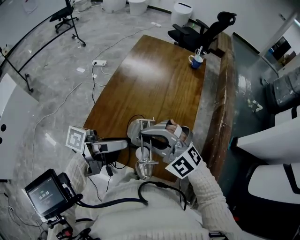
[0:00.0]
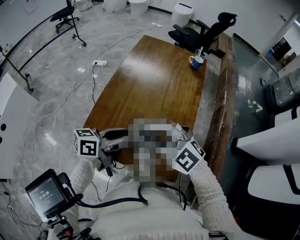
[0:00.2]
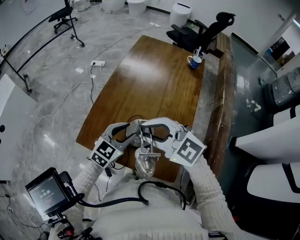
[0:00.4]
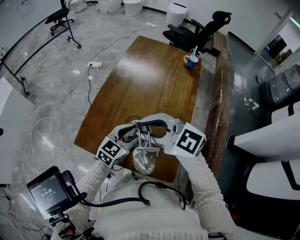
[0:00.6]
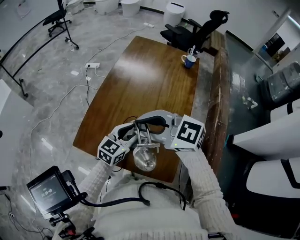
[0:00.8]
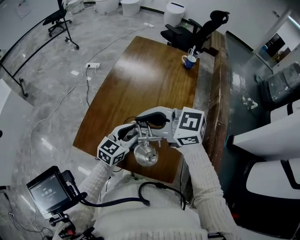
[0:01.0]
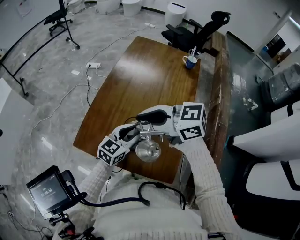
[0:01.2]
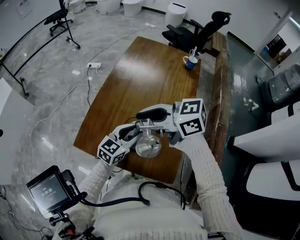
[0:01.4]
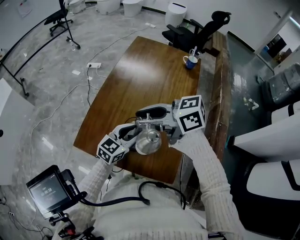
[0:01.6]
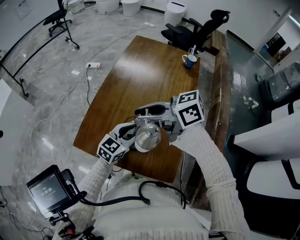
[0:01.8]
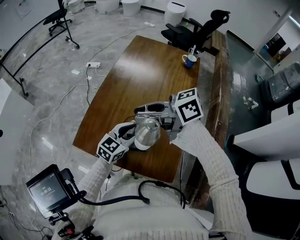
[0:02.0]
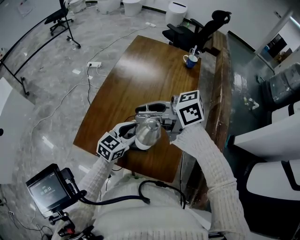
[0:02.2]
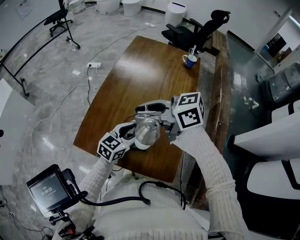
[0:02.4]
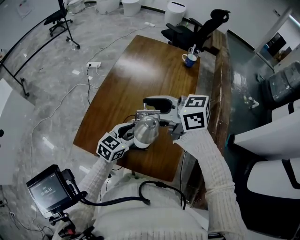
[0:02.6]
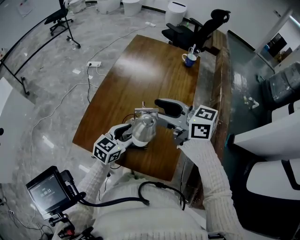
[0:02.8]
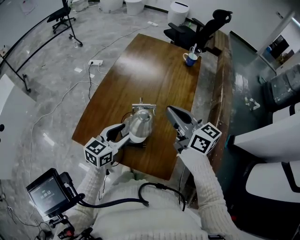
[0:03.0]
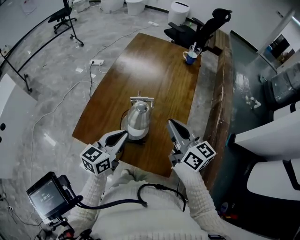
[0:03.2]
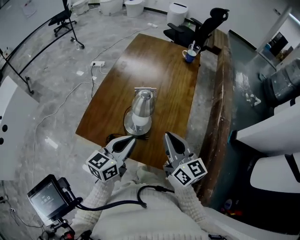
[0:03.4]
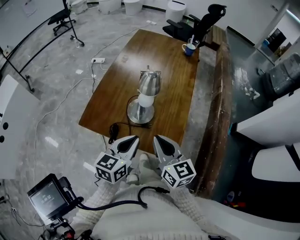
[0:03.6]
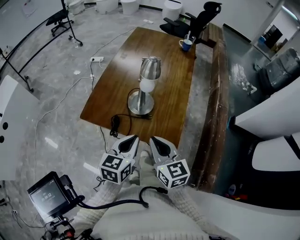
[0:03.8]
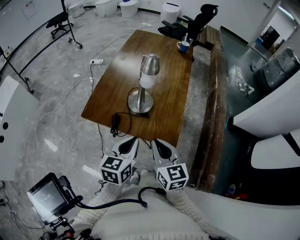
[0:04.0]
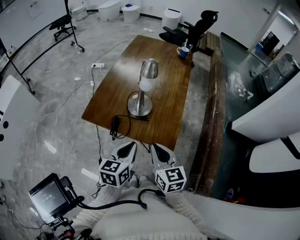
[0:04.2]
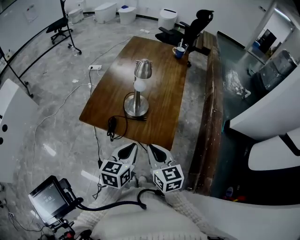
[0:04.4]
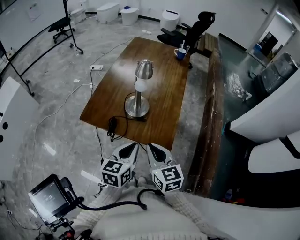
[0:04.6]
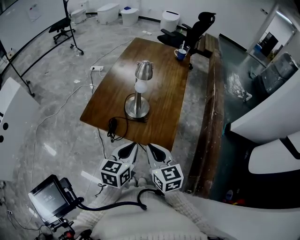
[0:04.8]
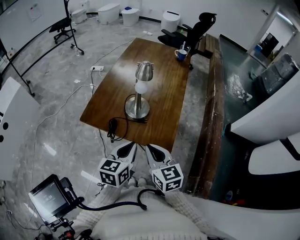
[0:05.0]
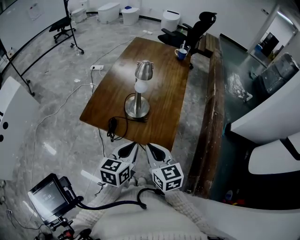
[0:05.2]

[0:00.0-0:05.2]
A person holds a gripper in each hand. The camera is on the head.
0:00.0 to 0:01.8: The right gripper ends up approximately 5 cm from where it was, and rolls clockwise, seen from behind, by about 80 degrees, while the left gripper goes some 10 cm downward, and twists roughly 60 degrees clockwise, seen from behind.
0:01.8 to 0:03.4: The right gripper ends up roughly 15 cm from where it was, swivels approximately 60 degrees, and closes its fingers, while the left gripper changes place by about 10 cm, changes its angle by roughly 20 degrees, and closes its fingers.
0:03.4 to 0:05.2: The two grippers go about 15 cm backward.

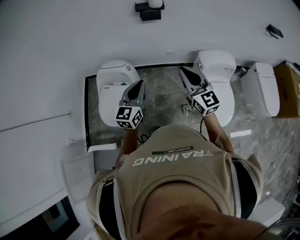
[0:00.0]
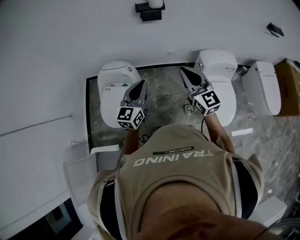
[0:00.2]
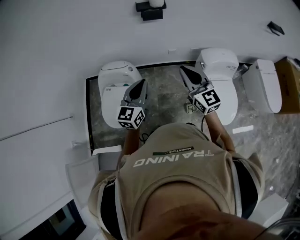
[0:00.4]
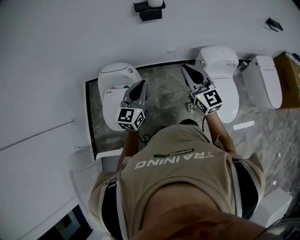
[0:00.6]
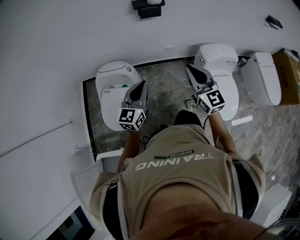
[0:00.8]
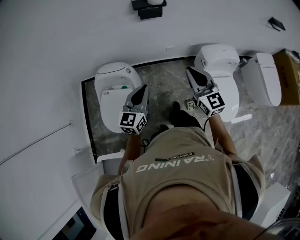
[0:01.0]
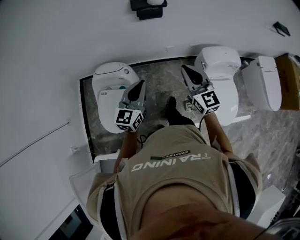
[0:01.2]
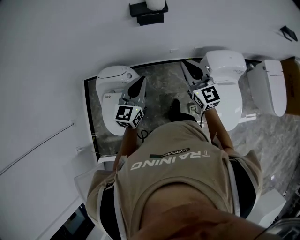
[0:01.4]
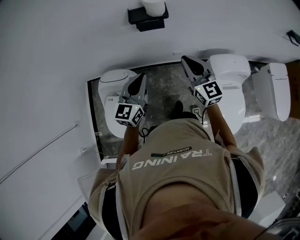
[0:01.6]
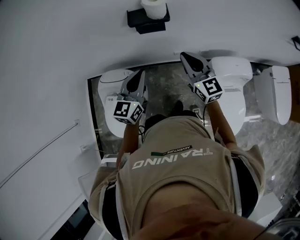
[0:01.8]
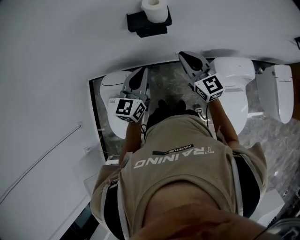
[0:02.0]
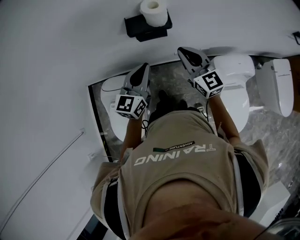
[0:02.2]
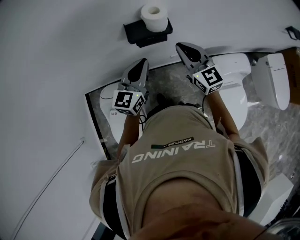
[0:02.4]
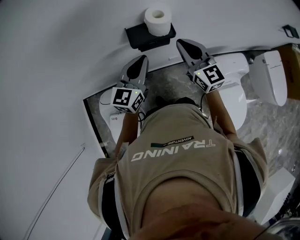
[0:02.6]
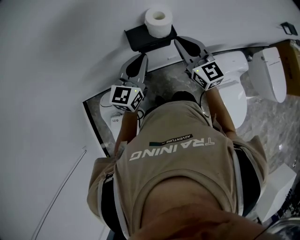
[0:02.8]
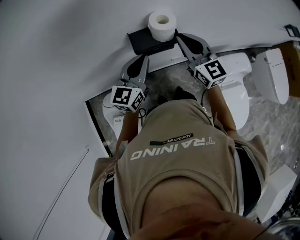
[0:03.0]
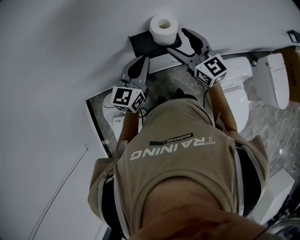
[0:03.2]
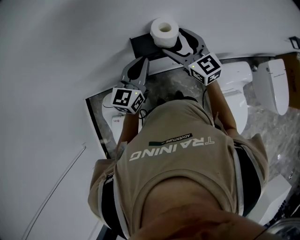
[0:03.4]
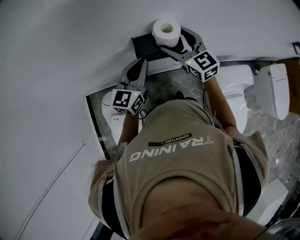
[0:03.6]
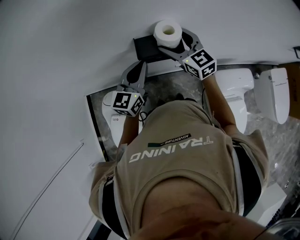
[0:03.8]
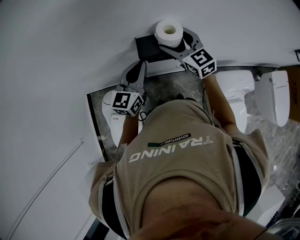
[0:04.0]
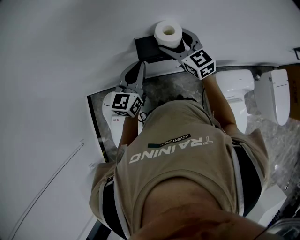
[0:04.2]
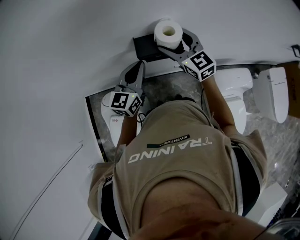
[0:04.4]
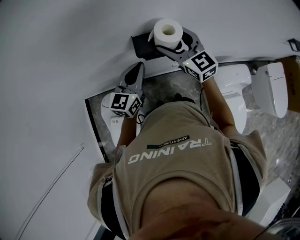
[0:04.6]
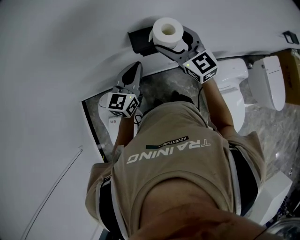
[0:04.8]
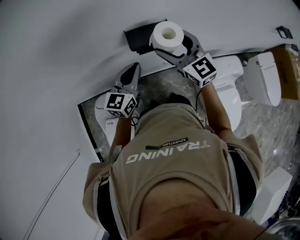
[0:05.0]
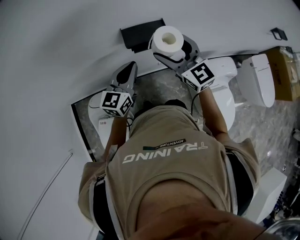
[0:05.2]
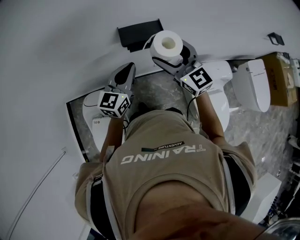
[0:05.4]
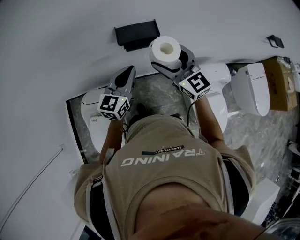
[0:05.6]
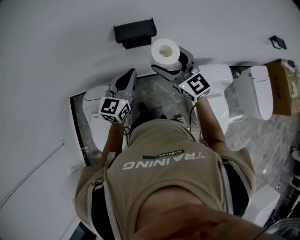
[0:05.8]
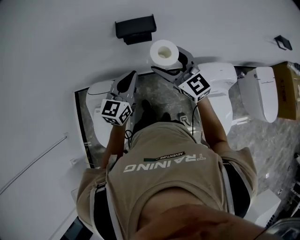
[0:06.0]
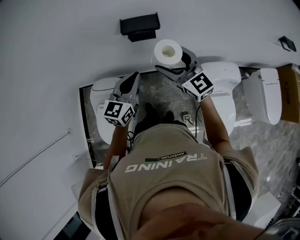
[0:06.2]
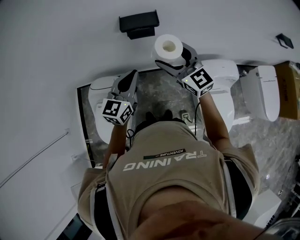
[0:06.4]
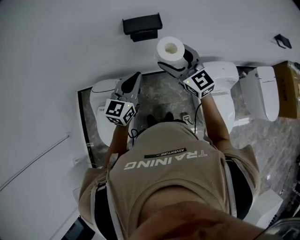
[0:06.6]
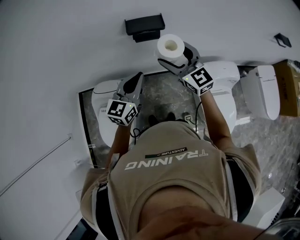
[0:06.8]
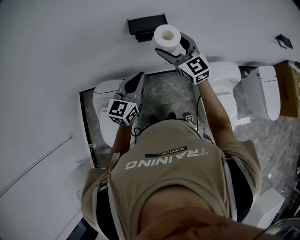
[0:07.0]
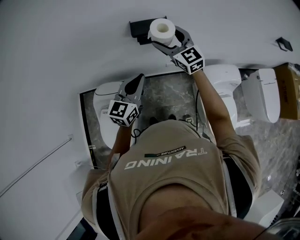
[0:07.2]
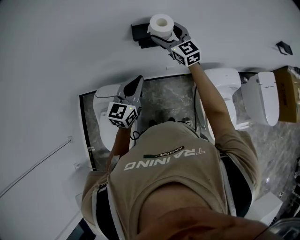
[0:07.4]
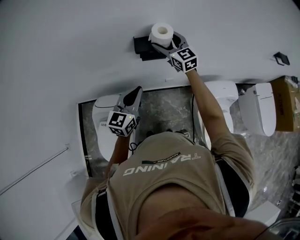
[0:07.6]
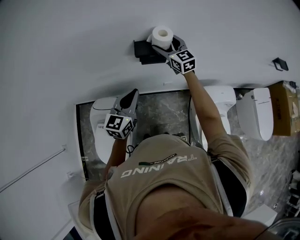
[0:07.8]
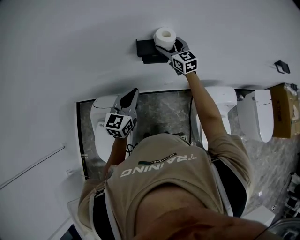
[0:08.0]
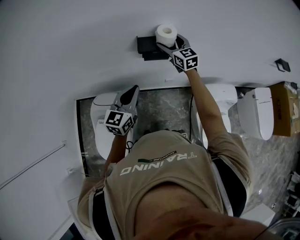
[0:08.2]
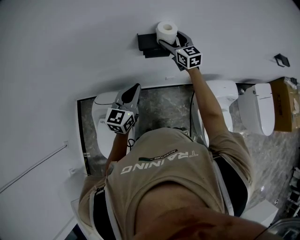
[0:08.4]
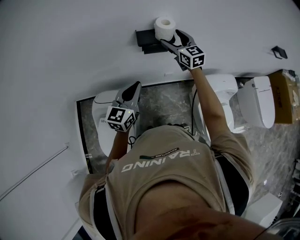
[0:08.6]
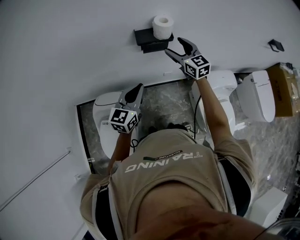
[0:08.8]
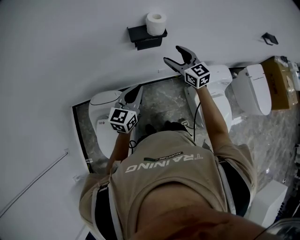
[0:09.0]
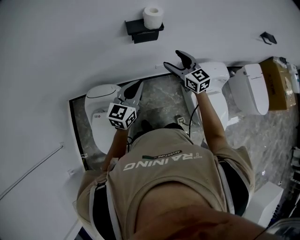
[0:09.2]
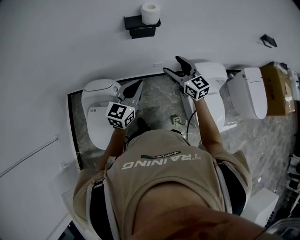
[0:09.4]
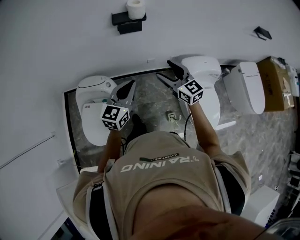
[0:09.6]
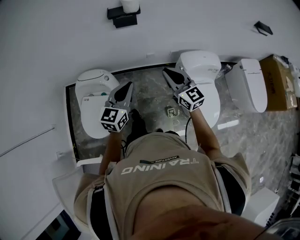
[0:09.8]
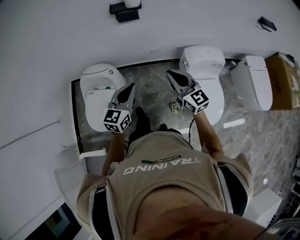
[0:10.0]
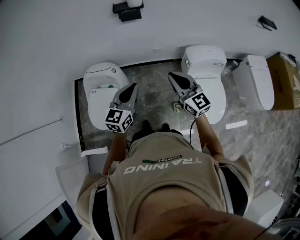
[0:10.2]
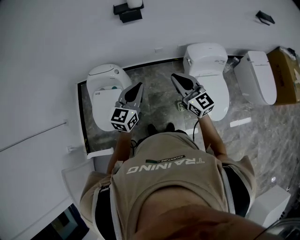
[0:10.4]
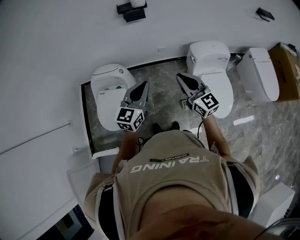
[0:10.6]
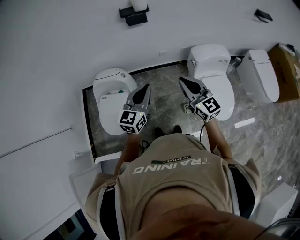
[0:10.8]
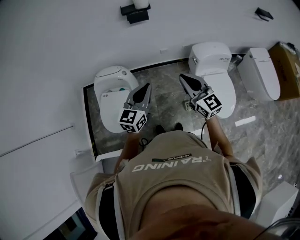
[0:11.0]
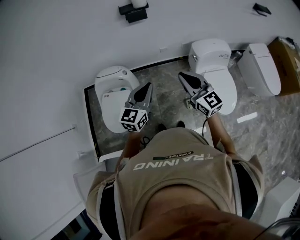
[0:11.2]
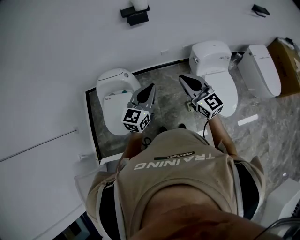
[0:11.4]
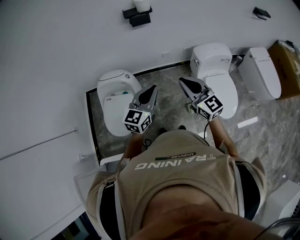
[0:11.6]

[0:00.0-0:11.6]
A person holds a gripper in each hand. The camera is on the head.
0:00.0 to 0:01.4: The grippers both shift forward by some 20 cm.
0:01.4 to 0:02.8: The grippers both shift forward by some 25 cm.
0:02.8 to 0:04.4: The right gripper shifts some 5 cm forward, and opens.
0:04.4 to 0:05.8: The two grippers go some 15 cm backward.
0:05.8 to 0:07.2: The right gripper travels forward by roughly 10 cm. Meanwhile the left gripper ends up some 5 cm from where it was.
0:07.2 to 0:08.8: The right gripper goes forward and returns, about 10 cm each way.
0:08.8 to 0:10.2: The left gripper is displaced backward and to the right by roughly 30 cm; the right gripper travels backward by roughly 40 cm, and closes its fingers.
0:10.2 to 0:11.6: The right gripper goes approximately 10 cm backward and to the left.

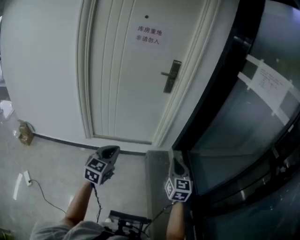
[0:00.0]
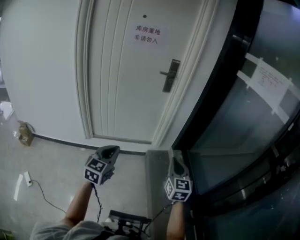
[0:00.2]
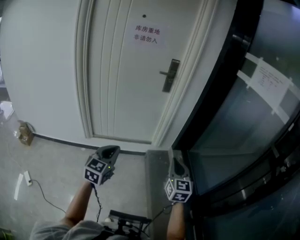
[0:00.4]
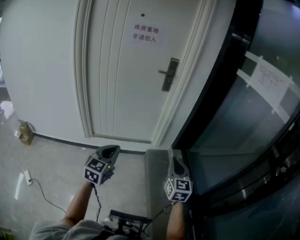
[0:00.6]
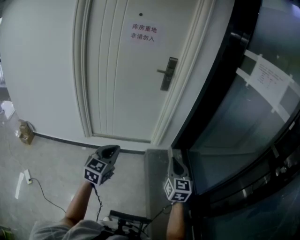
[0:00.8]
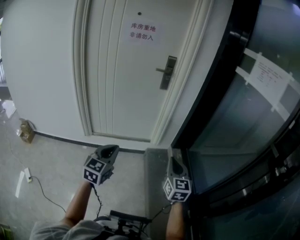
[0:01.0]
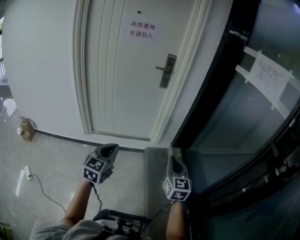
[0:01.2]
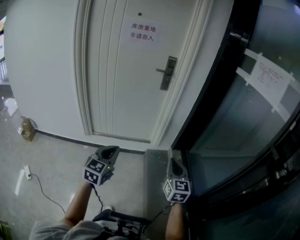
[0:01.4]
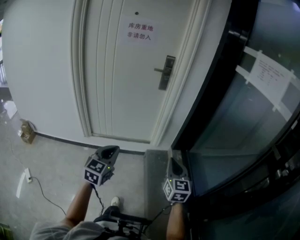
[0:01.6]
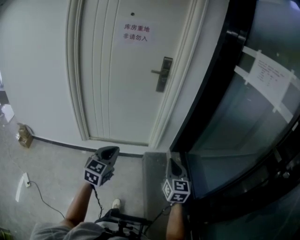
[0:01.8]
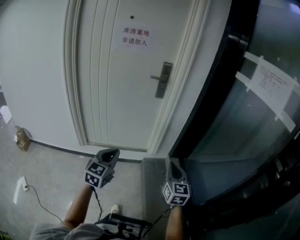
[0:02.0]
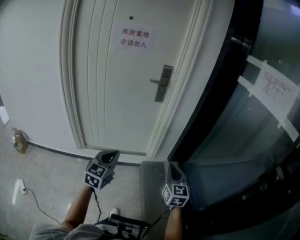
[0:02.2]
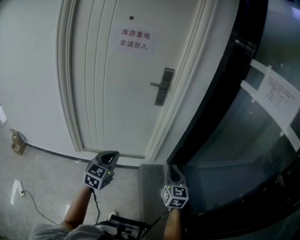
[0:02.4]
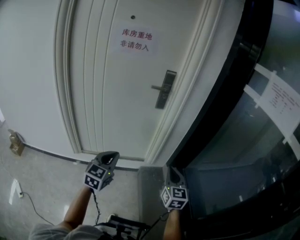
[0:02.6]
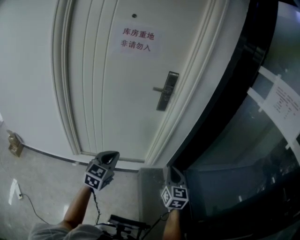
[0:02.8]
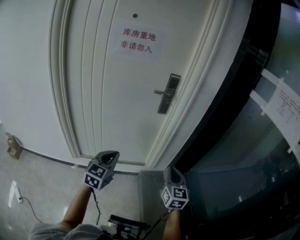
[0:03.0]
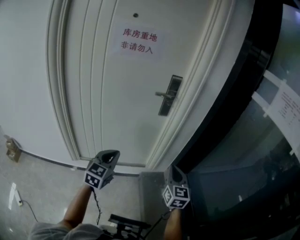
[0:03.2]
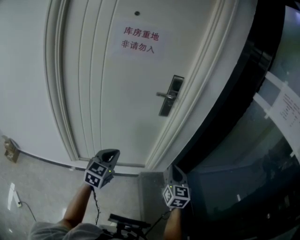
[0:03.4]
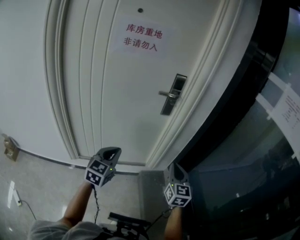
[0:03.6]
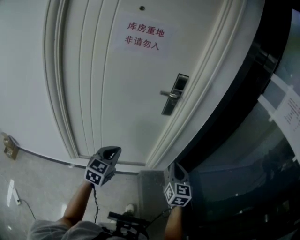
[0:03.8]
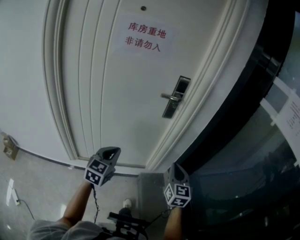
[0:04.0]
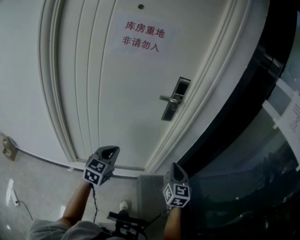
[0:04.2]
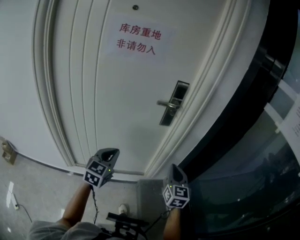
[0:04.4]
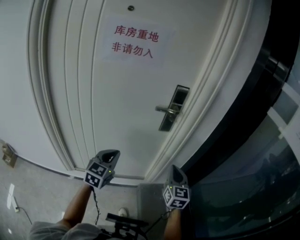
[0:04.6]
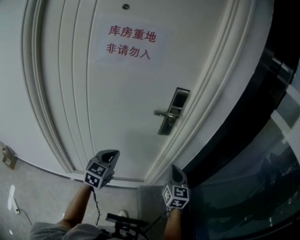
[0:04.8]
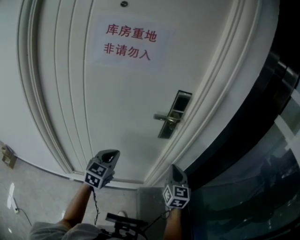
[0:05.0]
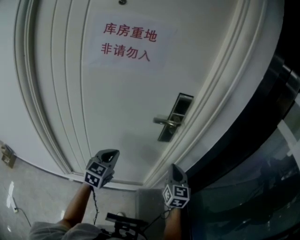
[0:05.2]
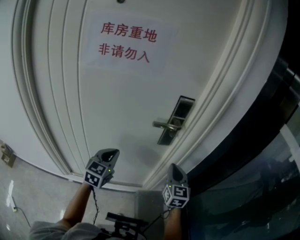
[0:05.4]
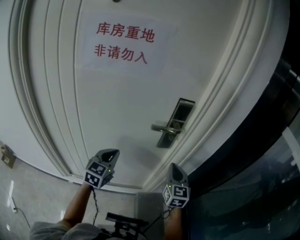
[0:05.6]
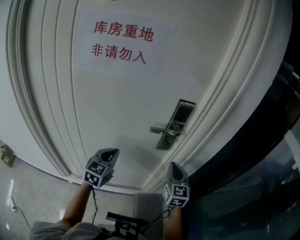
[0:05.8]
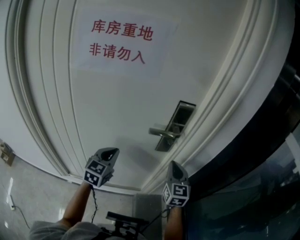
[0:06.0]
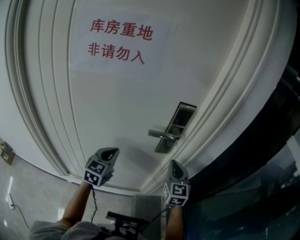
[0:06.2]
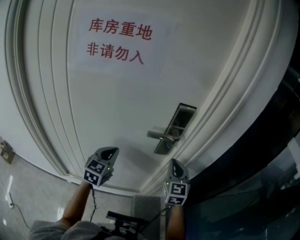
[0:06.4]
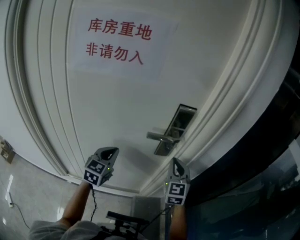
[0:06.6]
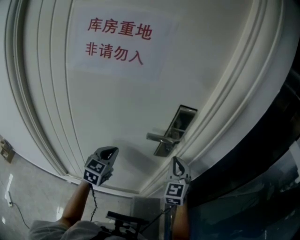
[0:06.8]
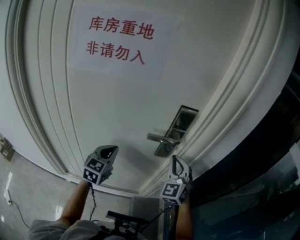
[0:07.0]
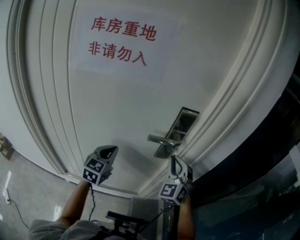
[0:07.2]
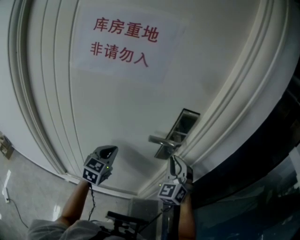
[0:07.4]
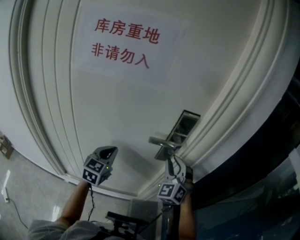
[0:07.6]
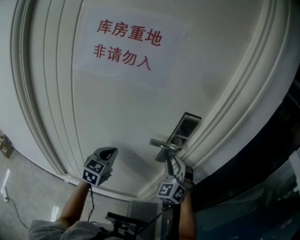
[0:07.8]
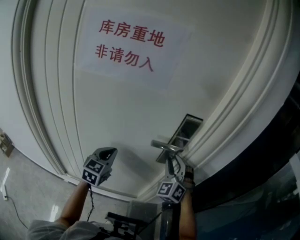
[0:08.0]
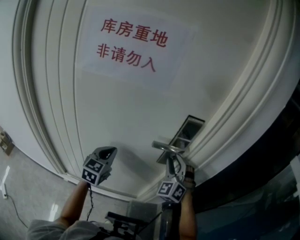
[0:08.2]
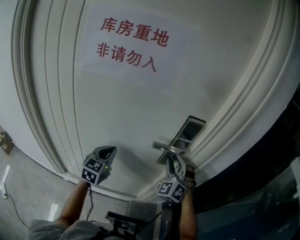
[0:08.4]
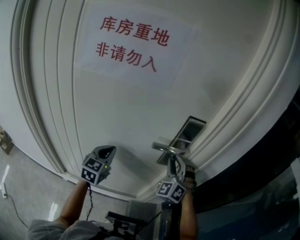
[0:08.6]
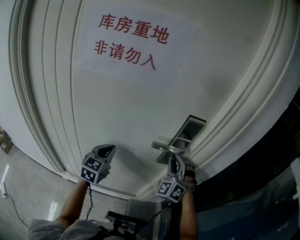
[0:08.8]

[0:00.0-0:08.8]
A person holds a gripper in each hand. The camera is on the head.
0:00.0 to 0:01.4: Both grippers move to the right, some 5 cm.
0:01.4 to 0:03.0: The grippers both shift forward by some 25 cm.
0:03.0 to 0:04.4: The two grippers go roughly 15 cm forward.
0:04.4 to 0:05.8: The grippers both shift forward by approximately 20 cm.
0:05.8 to 0:07.4: The right gripper moves forward, some 5 cm, and twists approximately 50 degrees counterclockwise, seen from behind.
0:07.4 to 0:08.8: The grippers move only a little.
